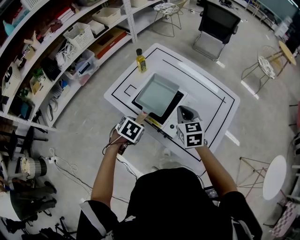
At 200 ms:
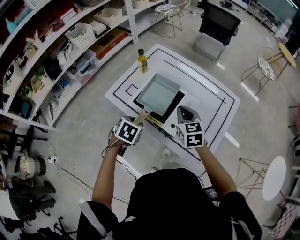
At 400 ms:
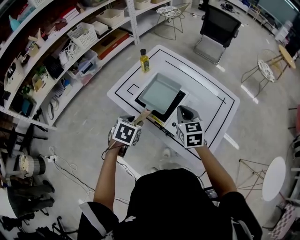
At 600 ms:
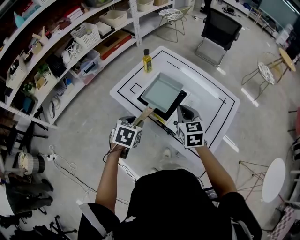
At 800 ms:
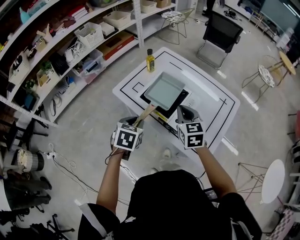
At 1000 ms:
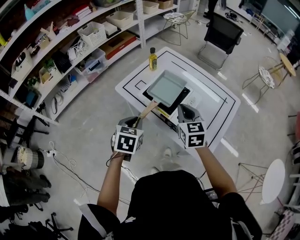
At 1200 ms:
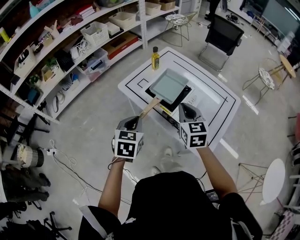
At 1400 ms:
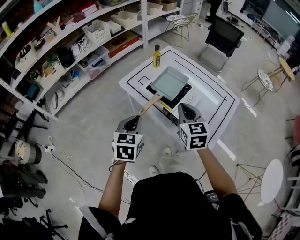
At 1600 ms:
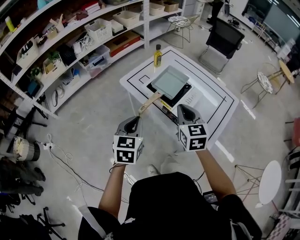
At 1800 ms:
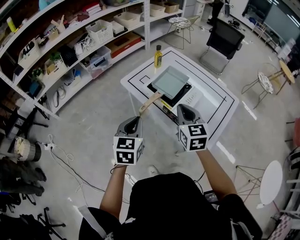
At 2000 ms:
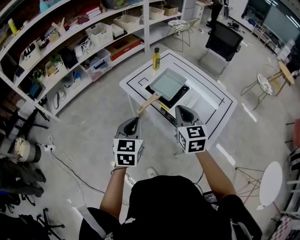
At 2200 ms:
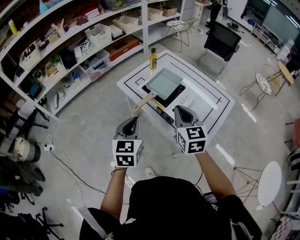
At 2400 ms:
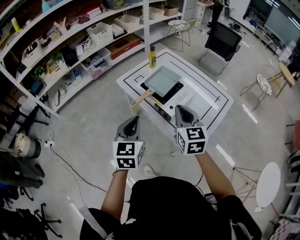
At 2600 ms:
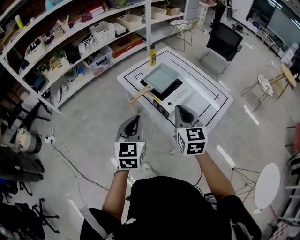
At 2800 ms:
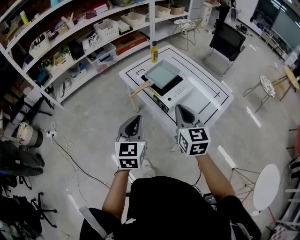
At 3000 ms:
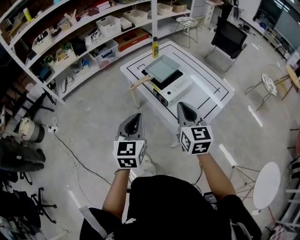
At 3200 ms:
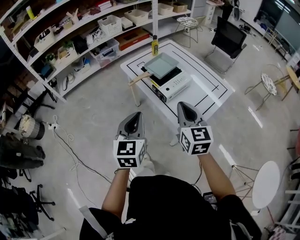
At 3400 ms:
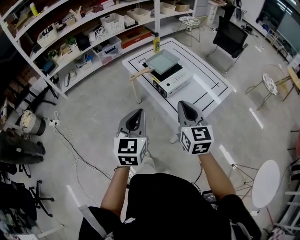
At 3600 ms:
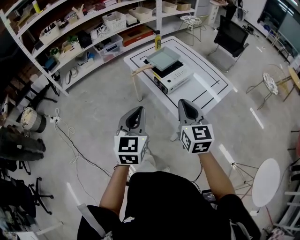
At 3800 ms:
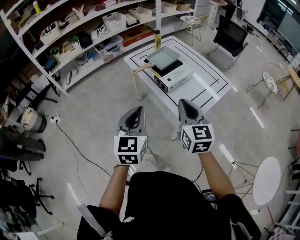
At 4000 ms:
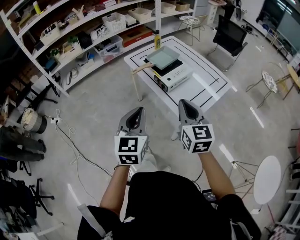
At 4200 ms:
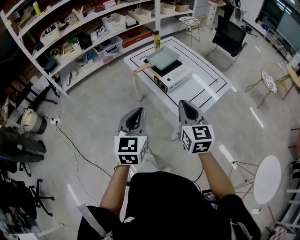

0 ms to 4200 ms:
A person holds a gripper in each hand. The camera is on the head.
0 ms to 1400 ms: The right gripper moves backward, upward and to the left, some 15 cm, while the left gripper moves upward and backward, about 20 cm, angles its fingers upward, by roughly 40 degrees, and closes its fingers.
1400 ms to 2800 ms: Both grippers travel together backward, to the right and upward, some 15 cm.
2800 ms to 4200 ms: The two grippers go some 15 cm backward.

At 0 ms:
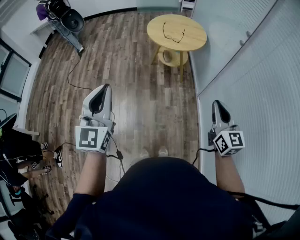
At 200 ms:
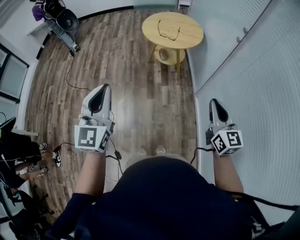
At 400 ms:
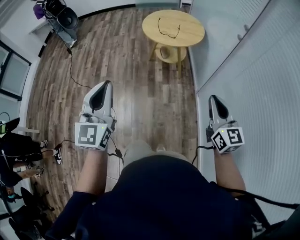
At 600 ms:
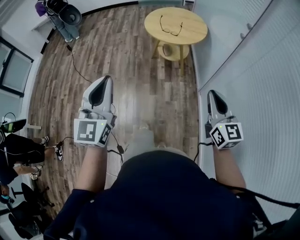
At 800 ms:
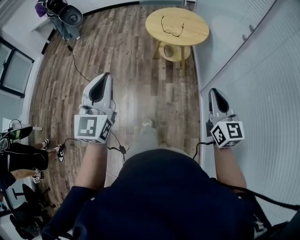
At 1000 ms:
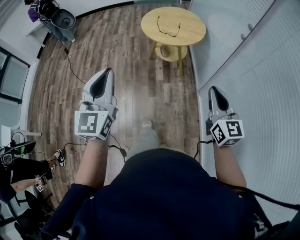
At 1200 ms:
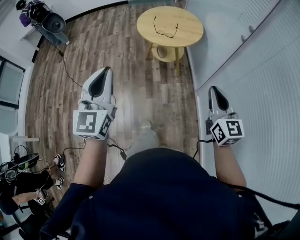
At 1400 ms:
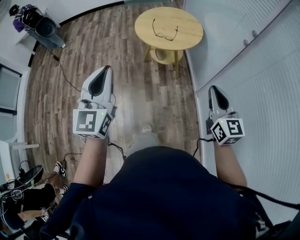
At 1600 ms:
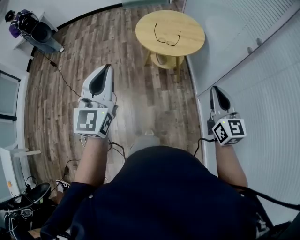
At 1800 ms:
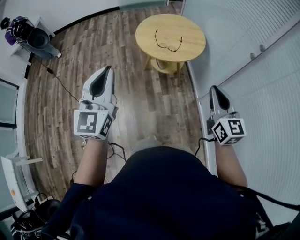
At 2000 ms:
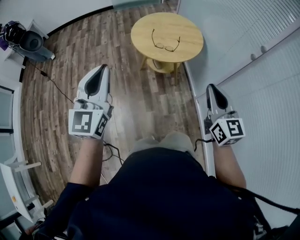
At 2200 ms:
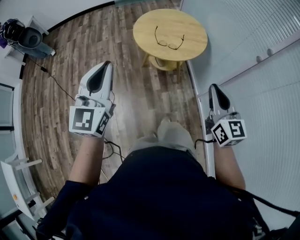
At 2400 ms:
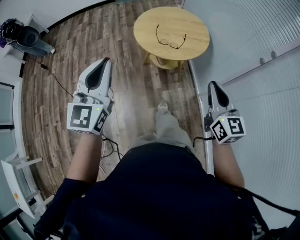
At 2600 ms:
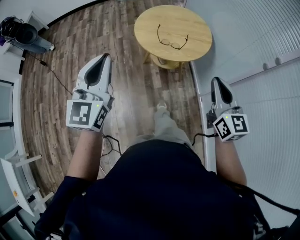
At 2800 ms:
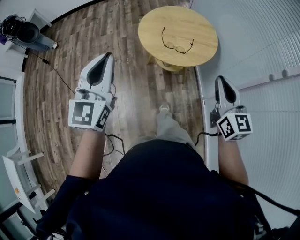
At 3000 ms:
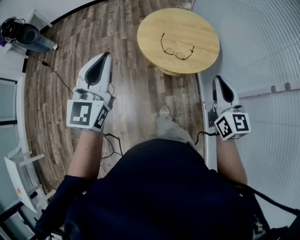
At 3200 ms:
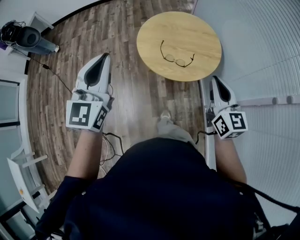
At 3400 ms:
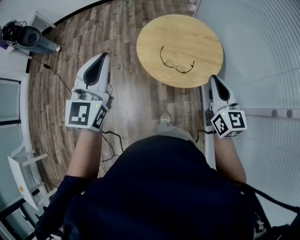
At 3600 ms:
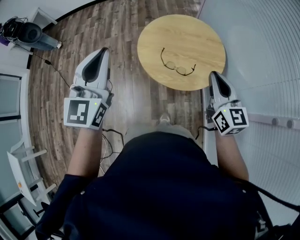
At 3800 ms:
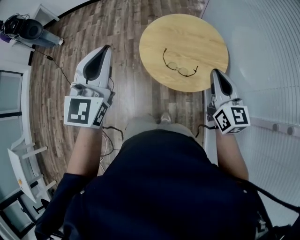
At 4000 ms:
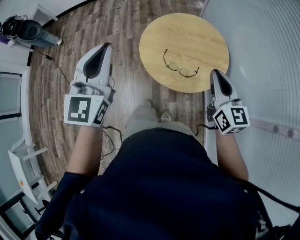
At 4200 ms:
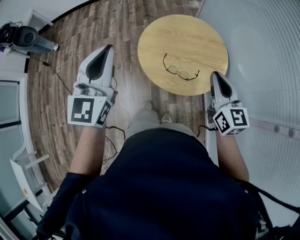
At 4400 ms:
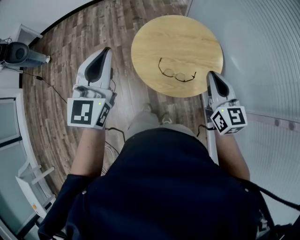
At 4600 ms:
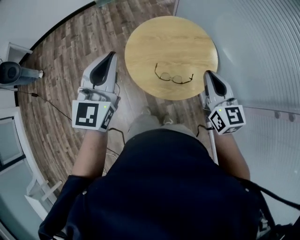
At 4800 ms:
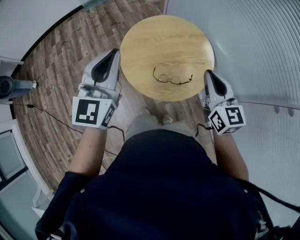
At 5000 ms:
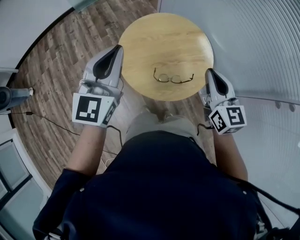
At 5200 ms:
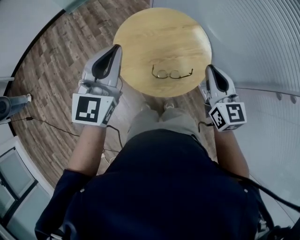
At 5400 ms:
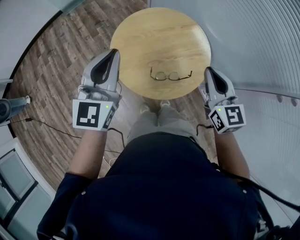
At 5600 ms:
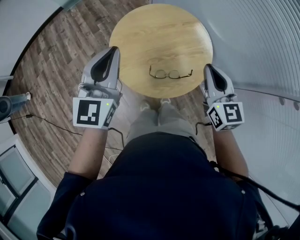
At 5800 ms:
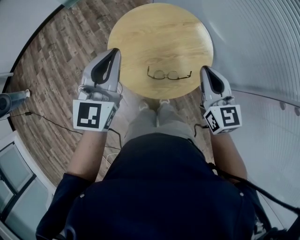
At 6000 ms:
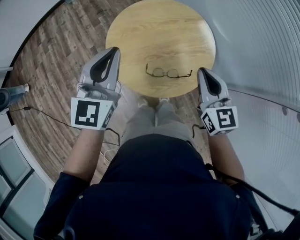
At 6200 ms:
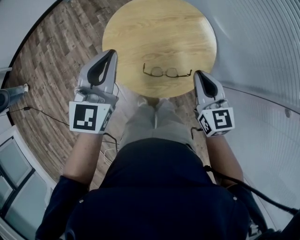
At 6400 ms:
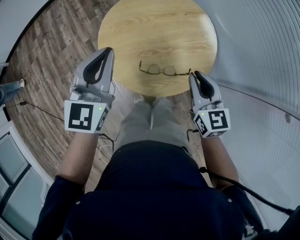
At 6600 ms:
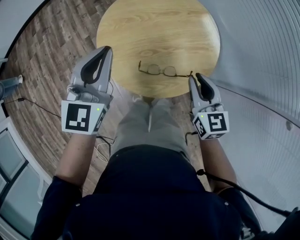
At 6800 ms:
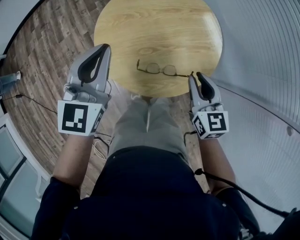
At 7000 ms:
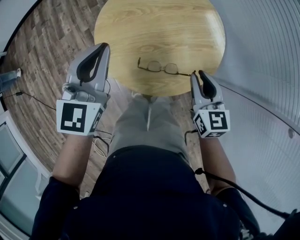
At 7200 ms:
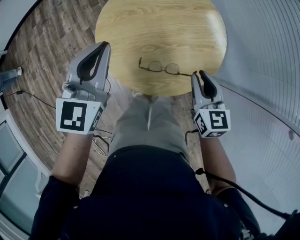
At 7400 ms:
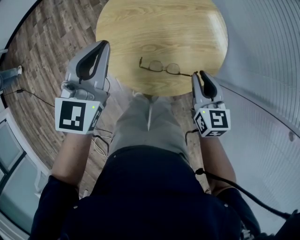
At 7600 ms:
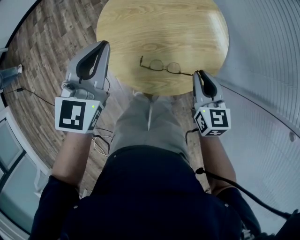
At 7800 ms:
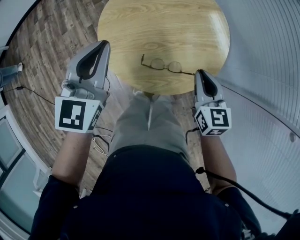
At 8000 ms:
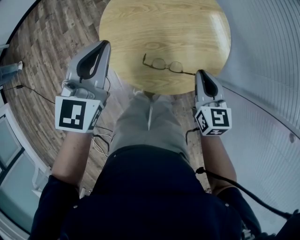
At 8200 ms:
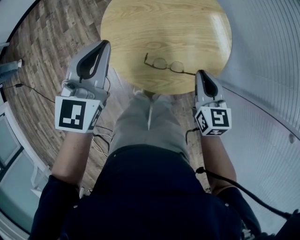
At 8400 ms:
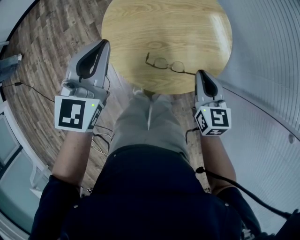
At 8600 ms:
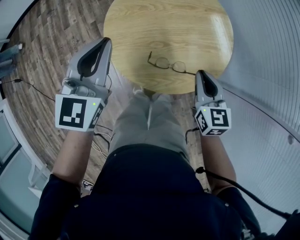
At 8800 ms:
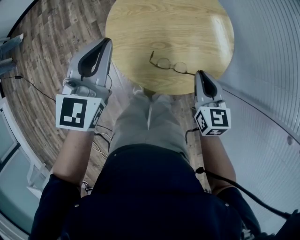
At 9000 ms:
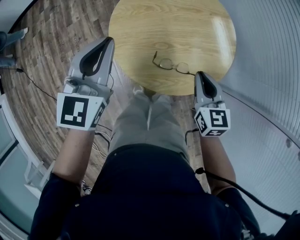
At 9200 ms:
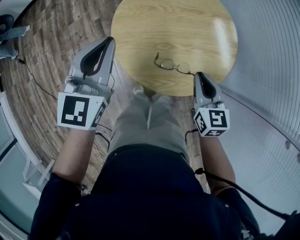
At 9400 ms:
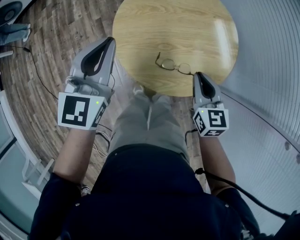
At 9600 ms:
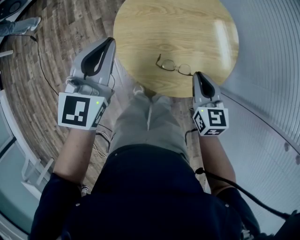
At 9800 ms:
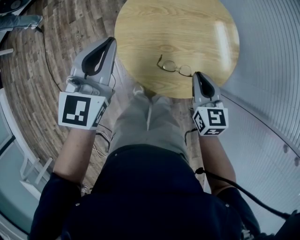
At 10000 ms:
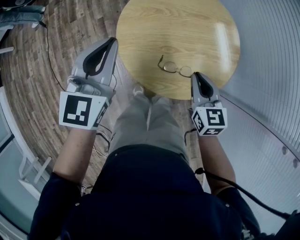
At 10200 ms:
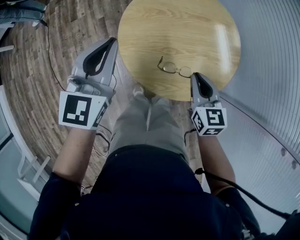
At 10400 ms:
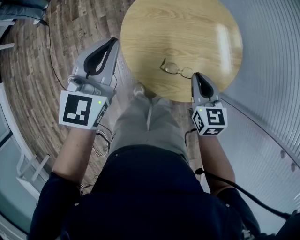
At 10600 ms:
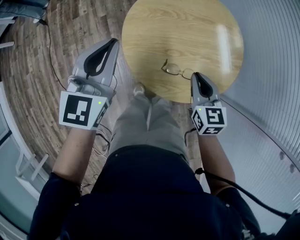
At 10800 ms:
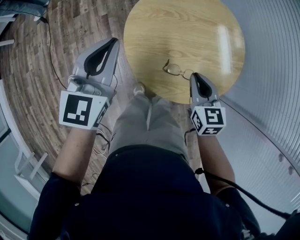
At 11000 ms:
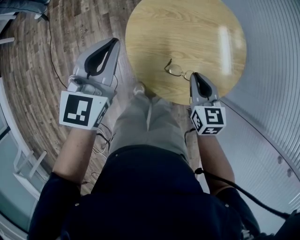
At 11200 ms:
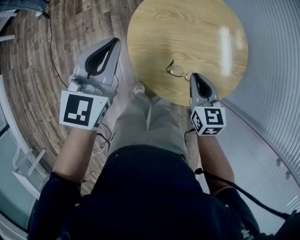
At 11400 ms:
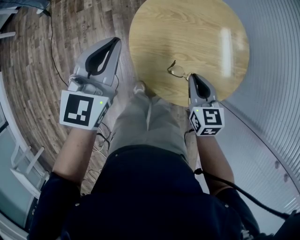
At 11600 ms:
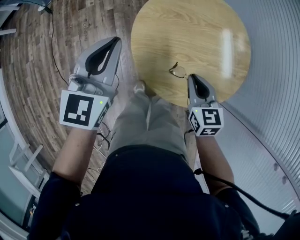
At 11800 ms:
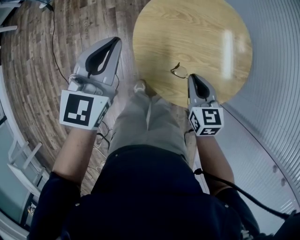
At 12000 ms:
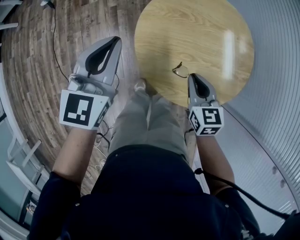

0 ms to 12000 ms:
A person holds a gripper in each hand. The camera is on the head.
0 ms to 1600 ms: The two grippers go some 25 cm forward.
1600 ms to 3000 ms: Both grippers move forward, some 25 cm.
3000 ms to 4400 ms: The grippers both shift forward by approximately 20 cm.
4400 ms to 6000 ms: The left gripper moves forward and downward, about 20 cm, and changes its angle by some 20 degrees. Meanwhile the right gripper travels downward and forward by about 10 cm.
6000 ms to 7600 ms: The right gripper moves downward, approximately 15 cm; the left gripper shifts roughly 10 cm downward.
7600 ms to 9000 ms: There are only small adjustments of the grippers.
9000 ms to 10400 ms: The right gripper ends up about 5 cm from where it was.
10400 ms to 12000 ms: The left gripper moves roughly 5 cm. Meanwhile the right gripper goes approximately 5 cm to the left.

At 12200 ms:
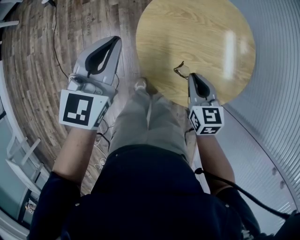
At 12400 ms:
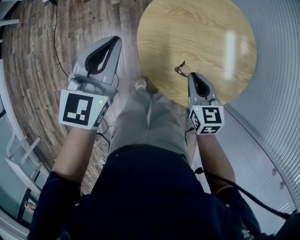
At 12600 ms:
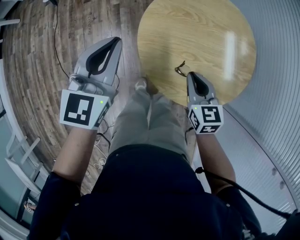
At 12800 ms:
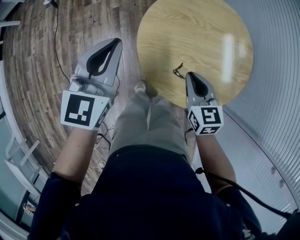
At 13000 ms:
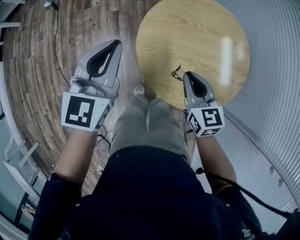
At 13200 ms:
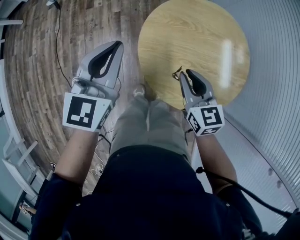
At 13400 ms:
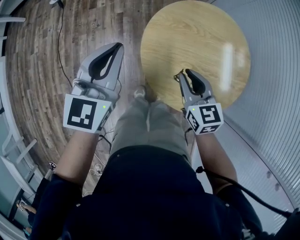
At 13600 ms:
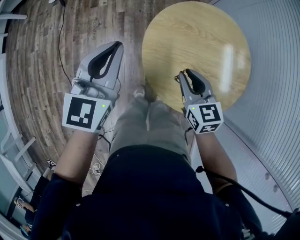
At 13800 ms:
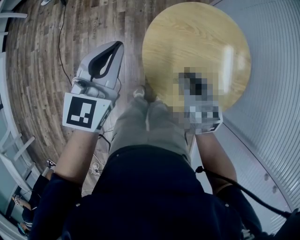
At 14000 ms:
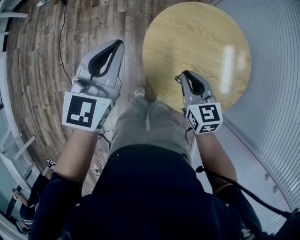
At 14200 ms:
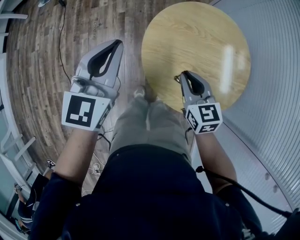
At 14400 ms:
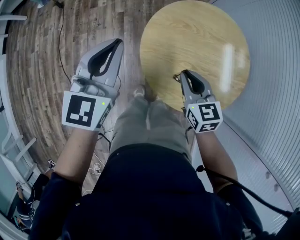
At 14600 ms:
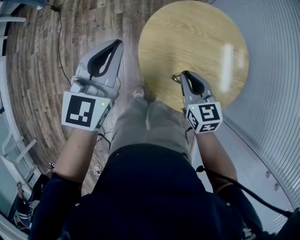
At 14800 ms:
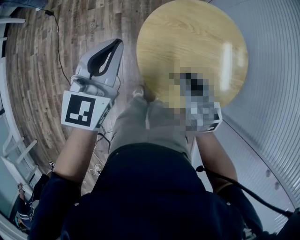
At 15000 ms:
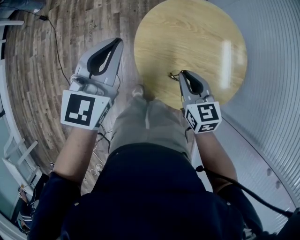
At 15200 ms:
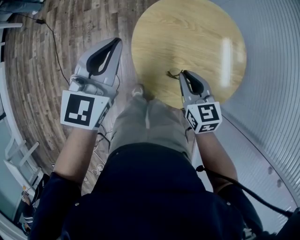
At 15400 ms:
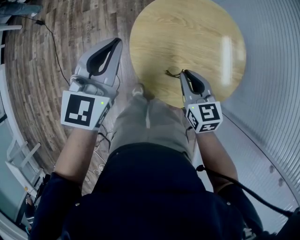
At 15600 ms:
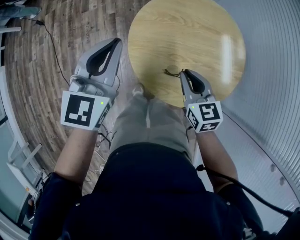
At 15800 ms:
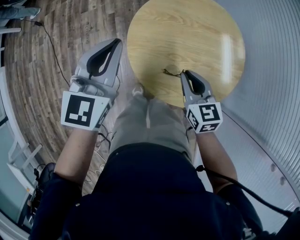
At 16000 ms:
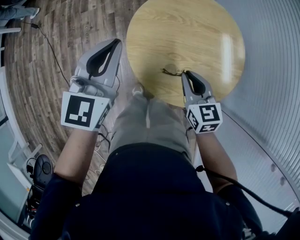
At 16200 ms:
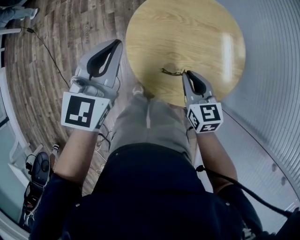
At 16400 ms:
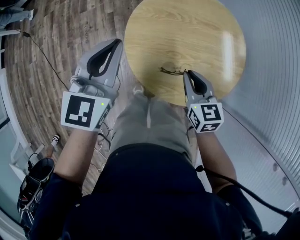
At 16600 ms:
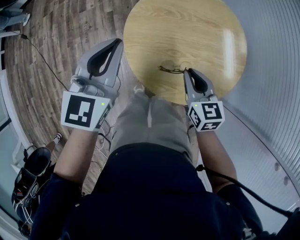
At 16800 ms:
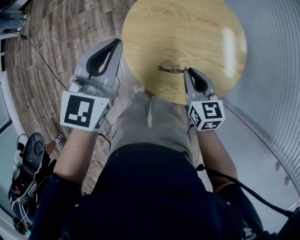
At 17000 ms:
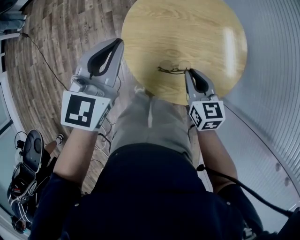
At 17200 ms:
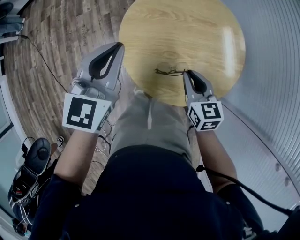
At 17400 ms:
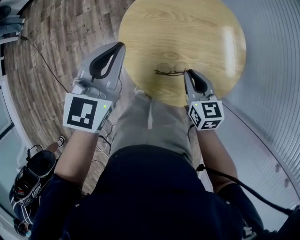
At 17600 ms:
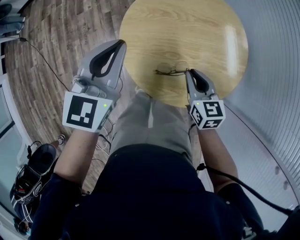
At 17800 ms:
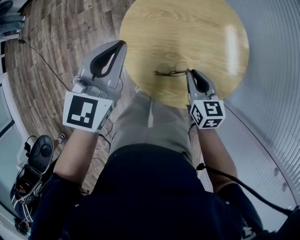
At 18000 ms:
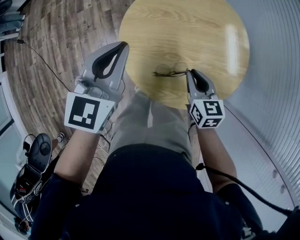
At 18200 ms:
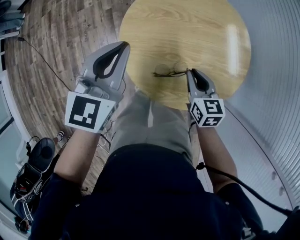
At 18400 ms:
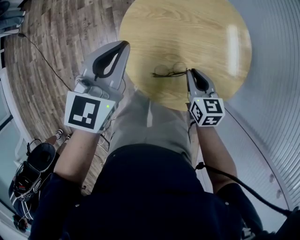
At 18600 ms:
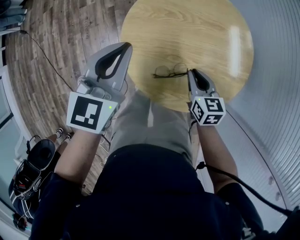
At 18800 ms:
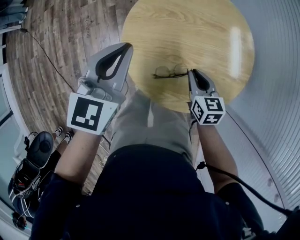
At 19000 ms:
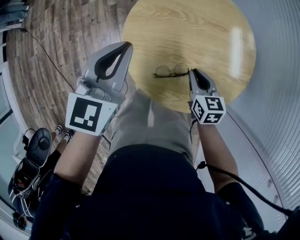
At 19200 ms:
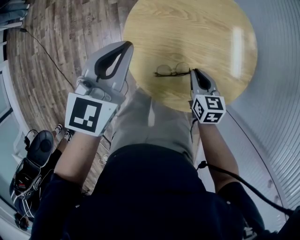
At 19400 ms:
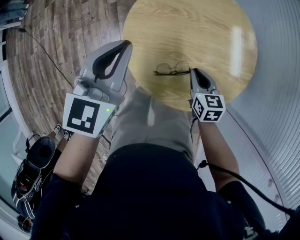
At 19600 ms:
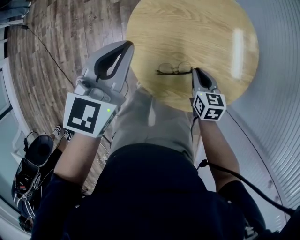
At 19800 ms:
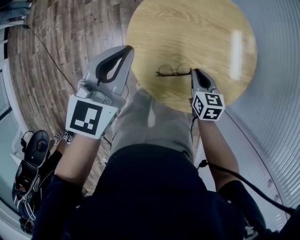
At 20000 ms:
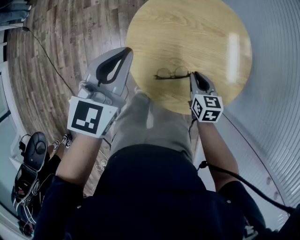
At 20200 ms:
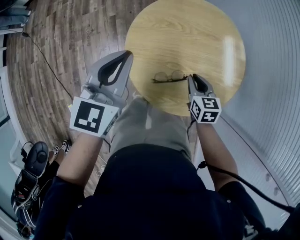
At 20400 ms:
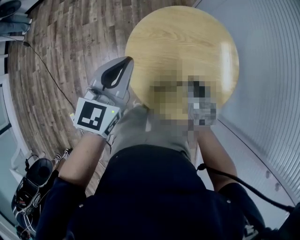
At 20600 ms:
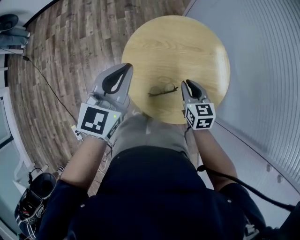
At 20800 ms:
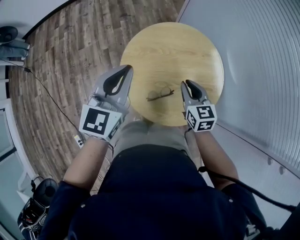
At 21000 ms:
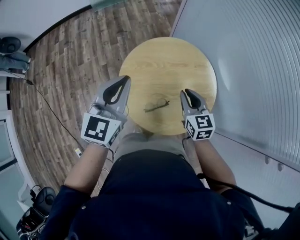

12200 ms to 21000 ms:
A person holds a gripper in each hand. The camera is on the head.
12200 ms to 13600 ms: The right gripper moves upward and to the left, roughly 5 cm.
13600 ms to 15200 ms: The grippers stay close to where they were, moving slightly.
15200 ms to 16600 ms: The right gripper shifts by about 5 cm.
16600 ms to 18000 ms: The right gripper changes place by roughly 5 cm.
18000 ms to 19600 ms: The right gripper shifts approximately 5 cm downward.
19600 ms to 21000 ms: The left gripper heads upward, covering about 15 cm, while the right gripper goes approximately 25 cm upward, and swivels some 20 degrees.
